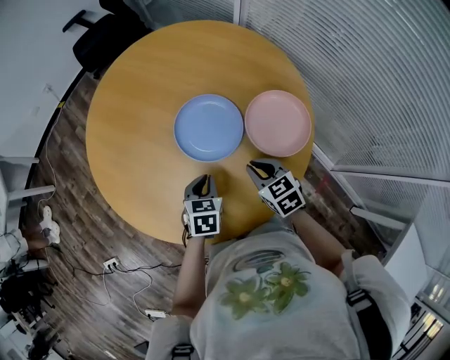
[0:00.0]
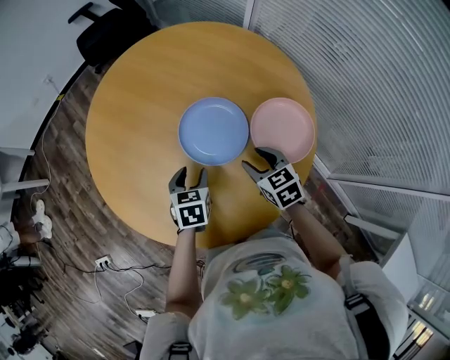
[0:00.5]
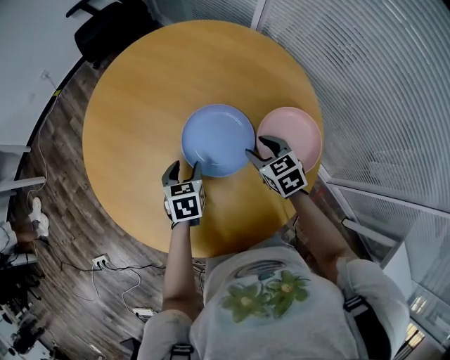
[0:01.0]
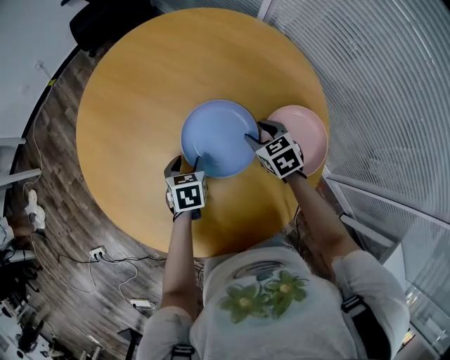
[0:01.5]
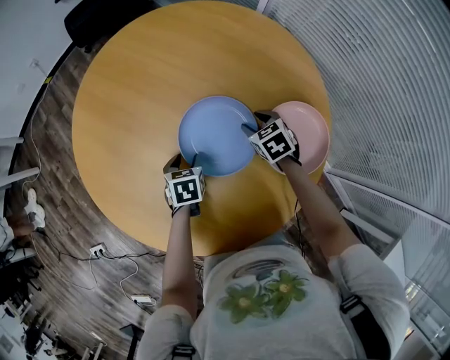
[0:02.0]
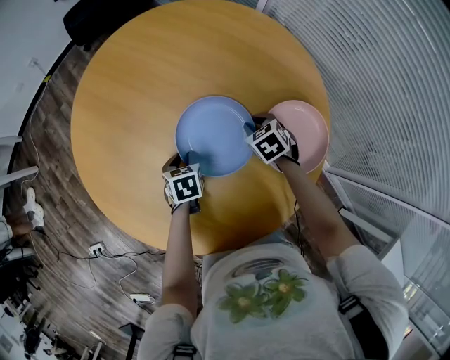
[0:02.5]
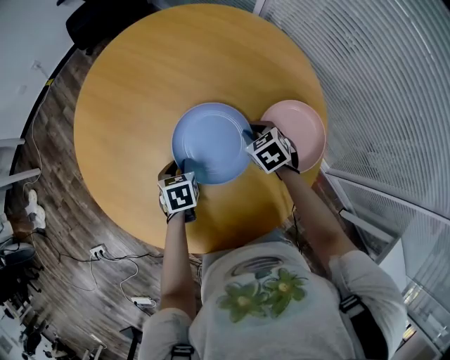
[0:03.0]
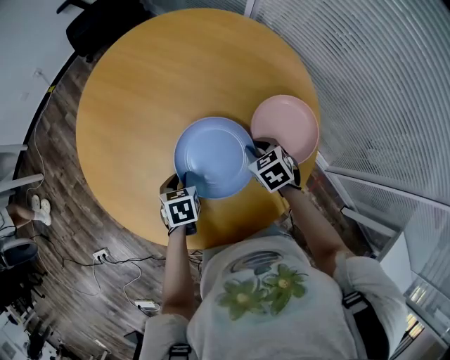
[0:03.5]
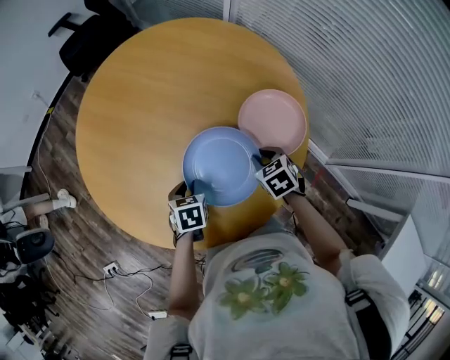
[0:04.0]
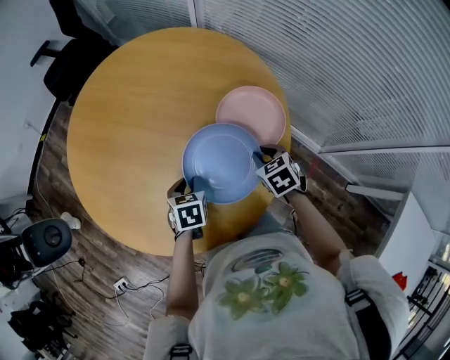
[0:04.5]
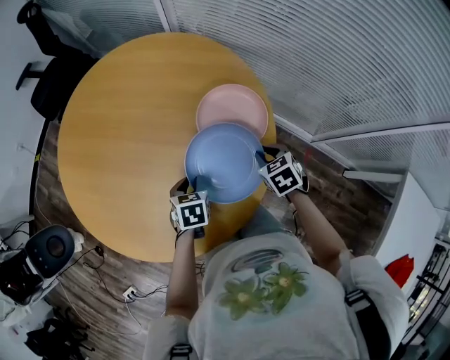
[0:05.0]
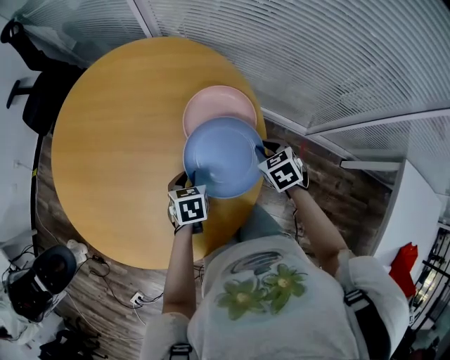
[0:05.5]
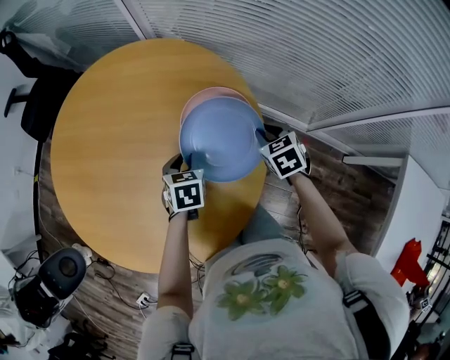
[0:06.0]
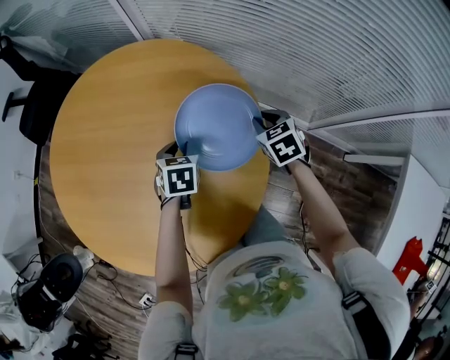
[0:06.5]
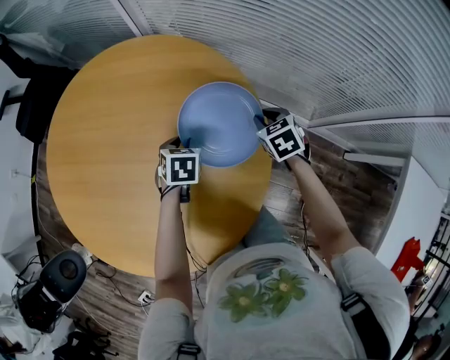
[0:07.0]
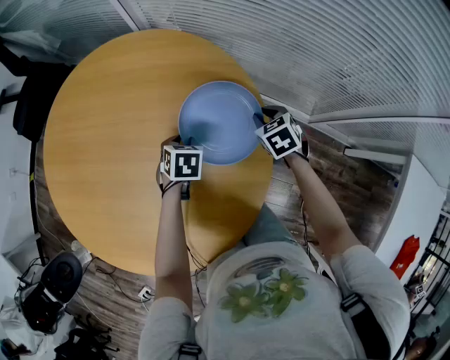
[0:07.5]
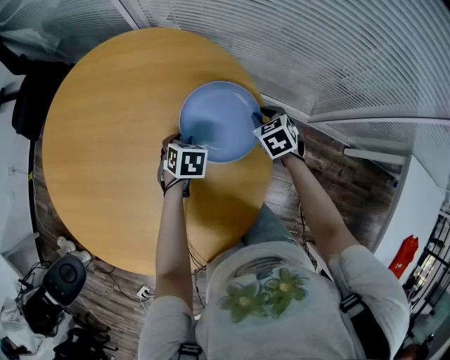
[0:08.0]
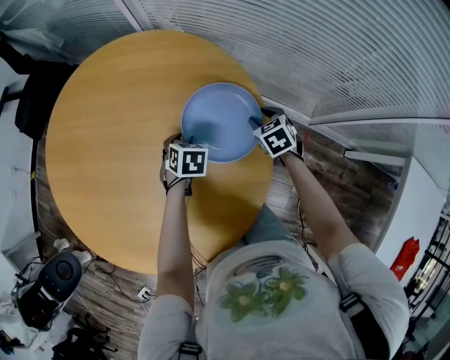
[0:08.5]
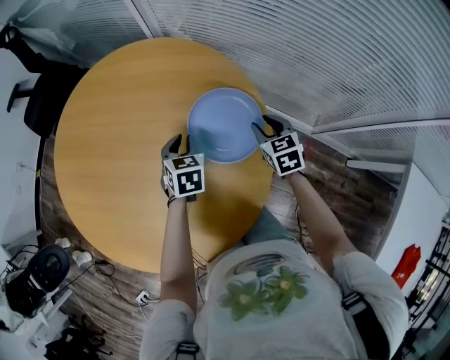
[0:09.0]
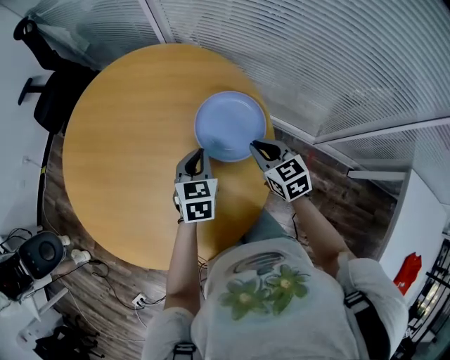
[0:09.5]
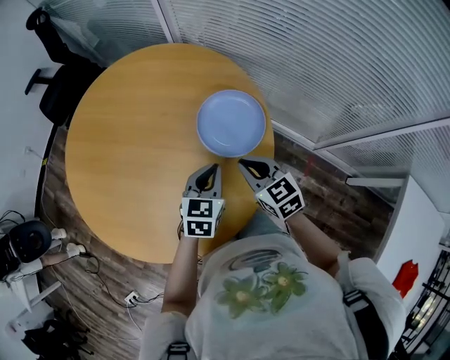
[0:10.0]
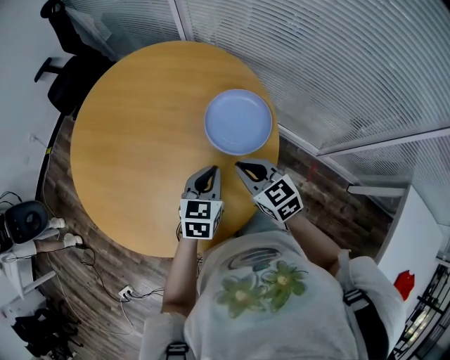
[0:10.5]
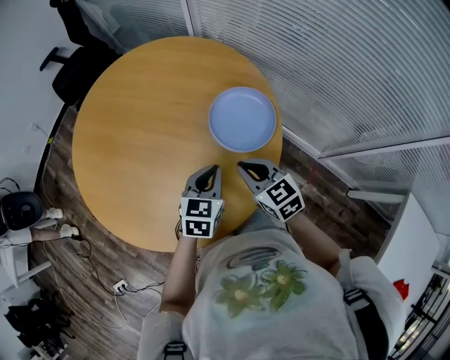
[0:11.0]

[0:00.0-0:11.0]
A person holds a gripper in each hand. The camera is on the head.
0:00.0 to 0:02.0: The grippers both shift forward and downward by approximately 25 cm. The right gripper opens. The left gripper opens its fingers.
0:02.0 to 0:03.5: Both grippers move backward and upward, some 10 cm. The left gripper closes its fingers; the right gripper closes its fingers.
0:03.5 to 0:05.5: The left gripper changes place by some 25 cm, and changes its angle by roughly 30 degrees, while the right gripper moves roughly 25 cm, and rotates some 30 degrees.
0:05.5 to 0:07.5: The two grippers go approximately 15 cm forward.
0:07.5 to 0:09.0: Both grippers travel together upward, roughly 5 cm.
0:09.0 to 0:11.0: The left gripper heads backward and upward, covering some 25 cm, while the right gripper is displaced backward, to the left and upward by roughly 25 cm, swivels roughly 30 degrees, and closes up.

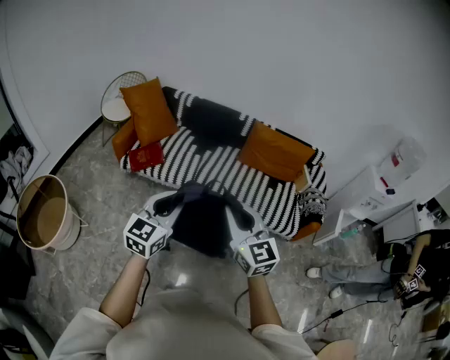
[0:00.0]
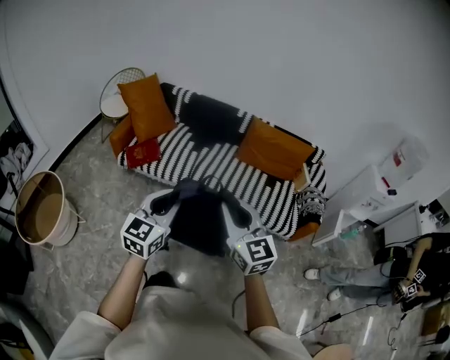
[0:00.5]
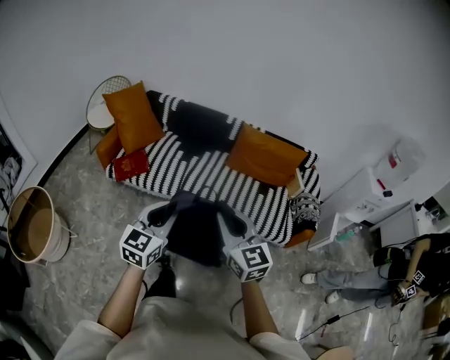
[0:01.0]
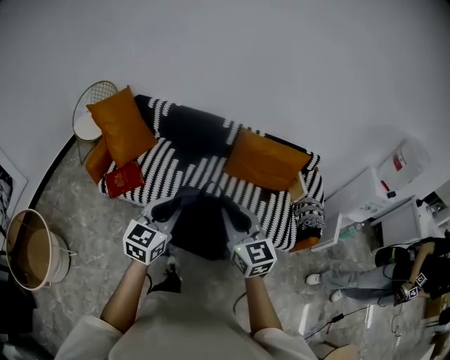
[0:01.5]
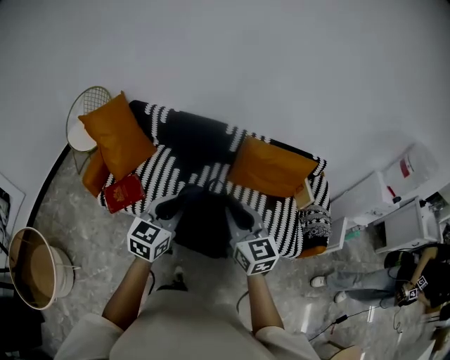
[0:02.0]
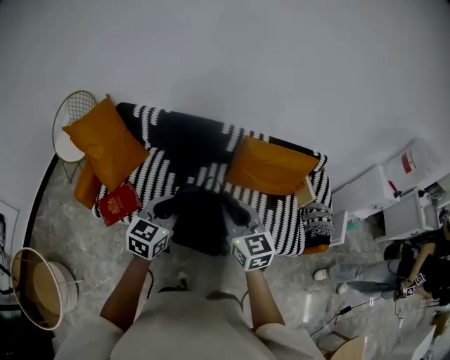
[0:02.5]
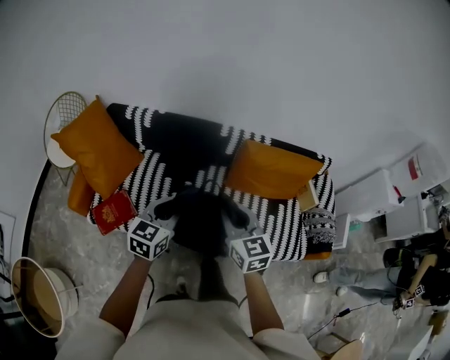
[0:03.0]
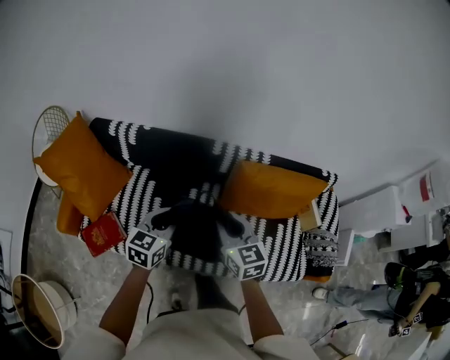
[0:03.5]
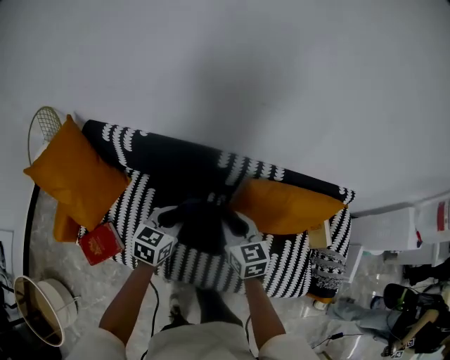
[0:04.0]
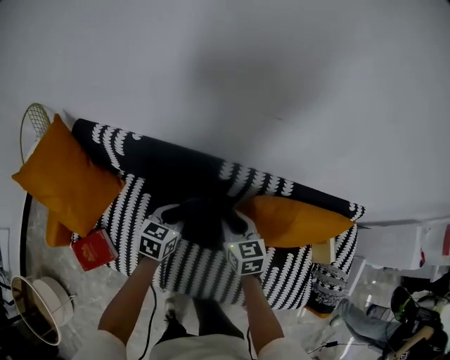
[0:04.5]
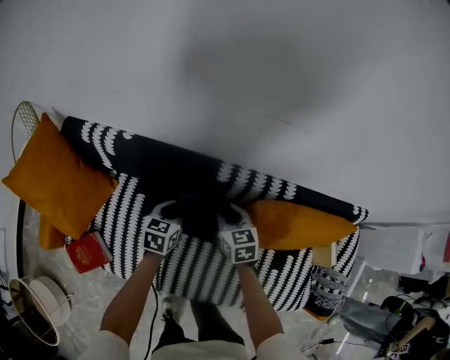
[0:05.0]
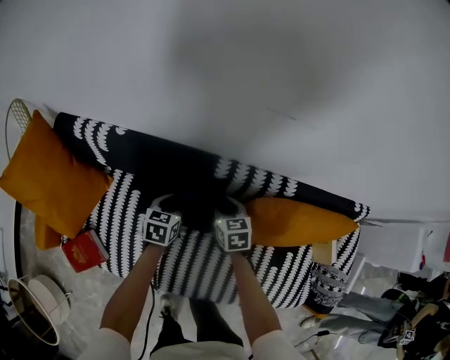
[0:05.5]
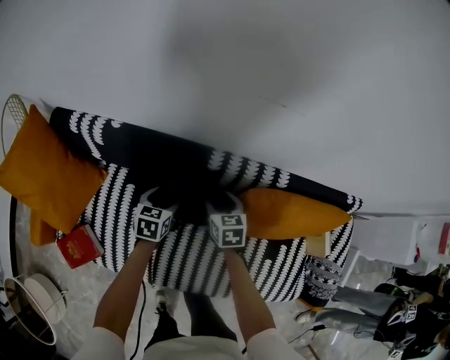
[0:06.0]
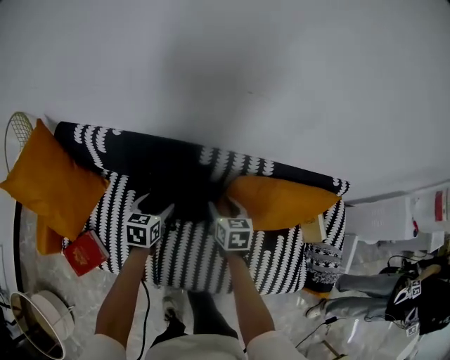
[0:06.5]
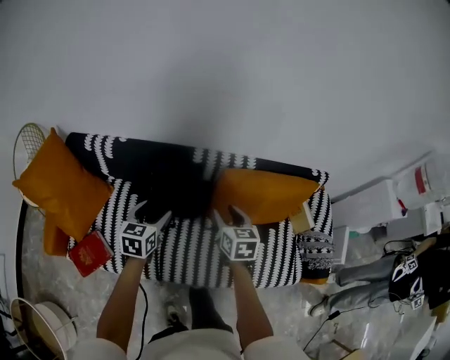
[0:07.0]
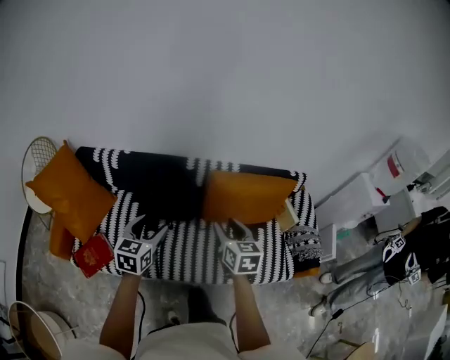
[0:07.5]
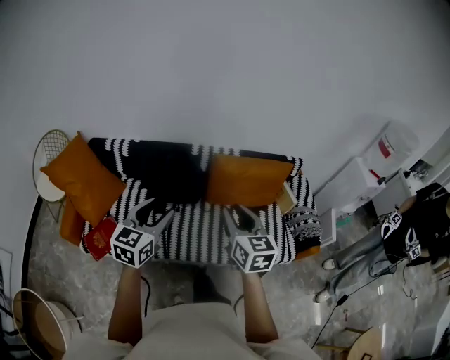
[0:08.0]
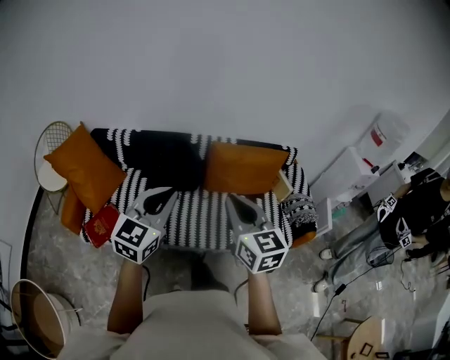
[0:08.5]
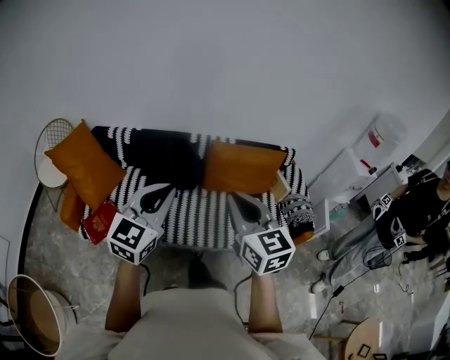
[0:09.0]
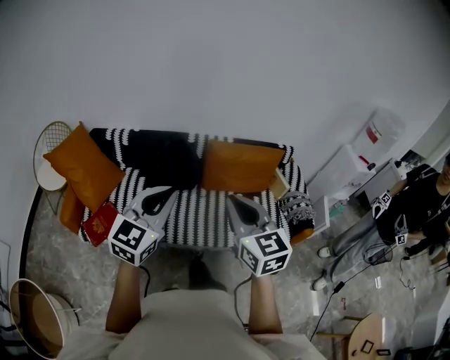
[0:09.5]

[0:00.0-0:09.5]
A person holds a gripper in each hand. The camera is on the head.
0:00.0 to 0:02.0: The grippers both shift forward by some 35 cm.
0:02.0 to 0:04.0: The pair of grippers is taken forward, approximately 50 cm. The grippers both shift downward by about 20 cm. The right gripper changes its angle by about 20 degrees. Meanwhile the left gripper changes its angle by approximately 20 degrees.
0:04.0 to 0:05.5: The two grippers go approximately 30 cm downward and forward.
0:05.5 to 0:07.5: Both grippers travel together backward and upward, some 50 cm. The right gripper rotates roughly 30 degrees, and opens up. The left gripper swivels some 30 degrees, and opens.
0:07.5 to 0:09.5: The two grippers go about 35 cm backward and upward. The left gripper swivels about 30 degrees, and closes; the right gripper changes its angle by approximately 20 degrees, and closes up.

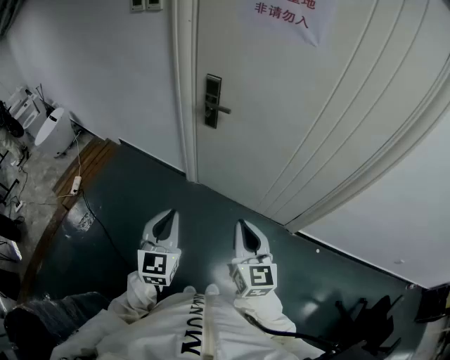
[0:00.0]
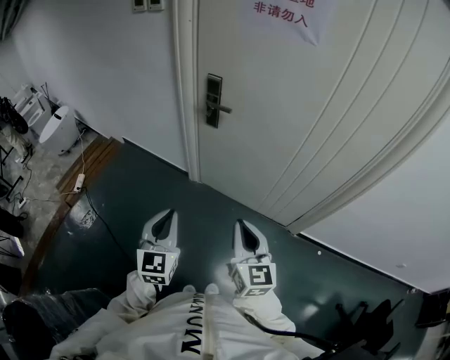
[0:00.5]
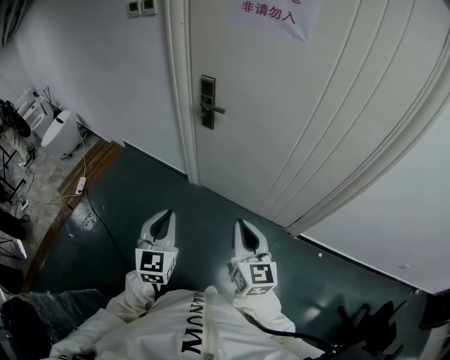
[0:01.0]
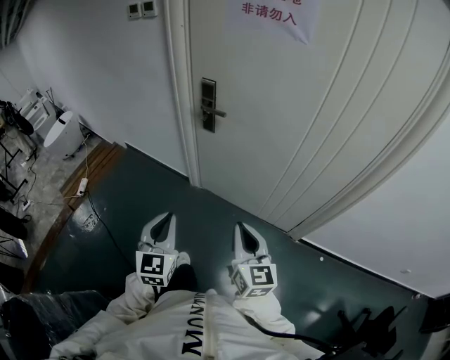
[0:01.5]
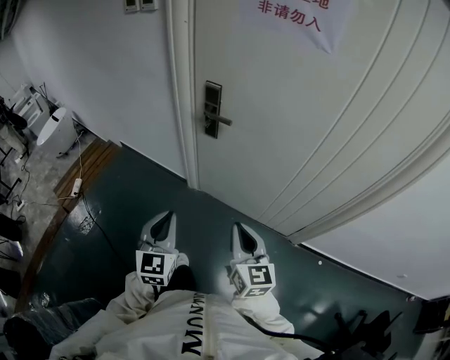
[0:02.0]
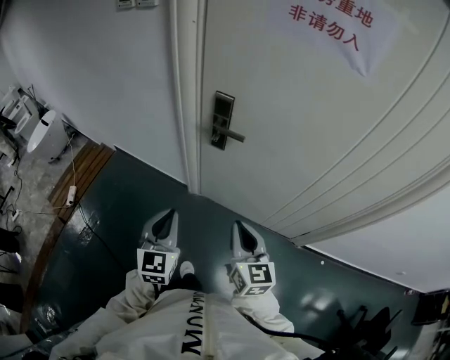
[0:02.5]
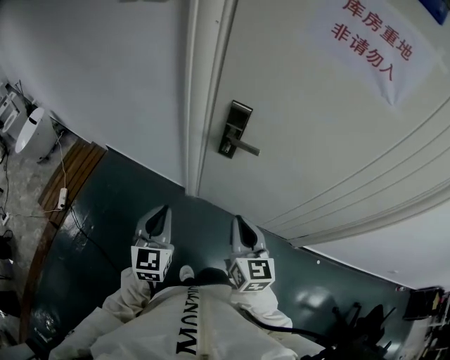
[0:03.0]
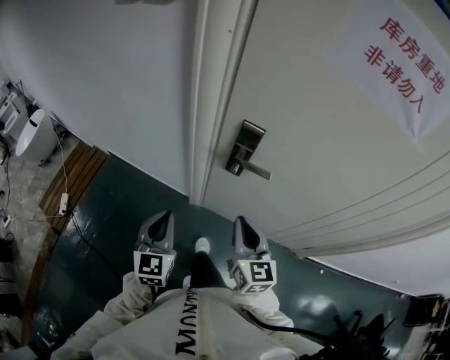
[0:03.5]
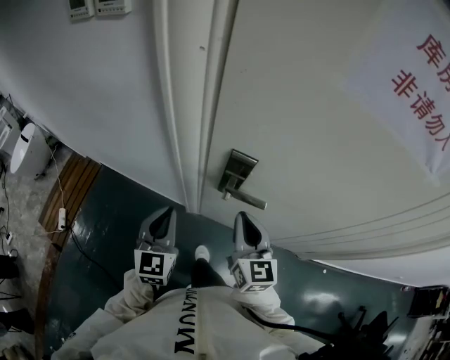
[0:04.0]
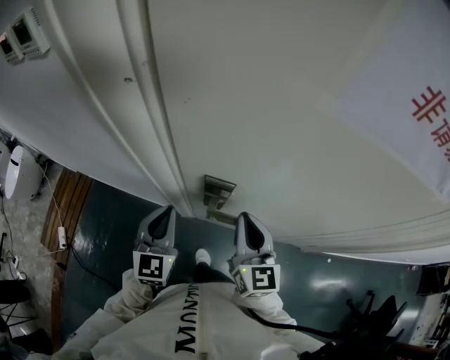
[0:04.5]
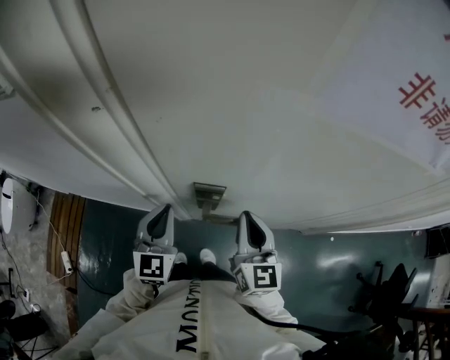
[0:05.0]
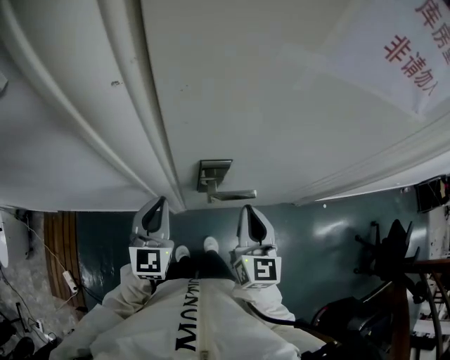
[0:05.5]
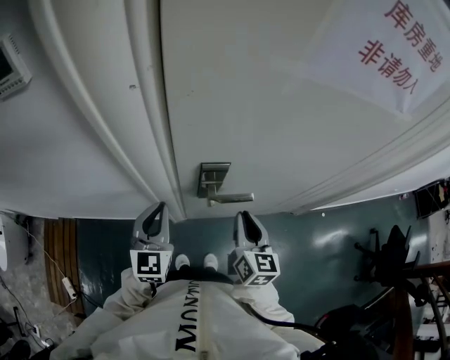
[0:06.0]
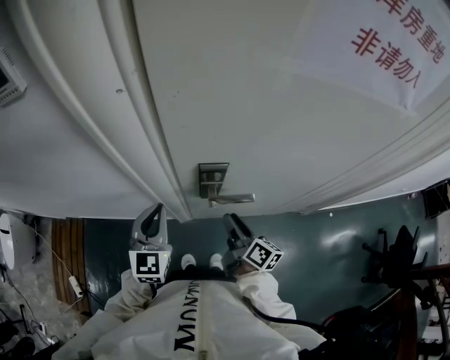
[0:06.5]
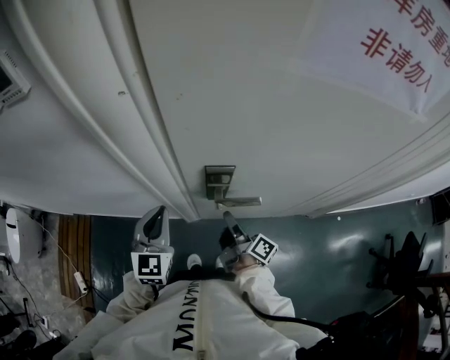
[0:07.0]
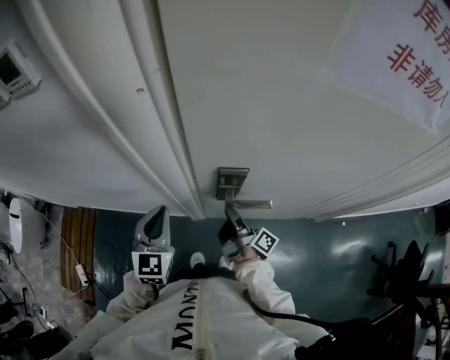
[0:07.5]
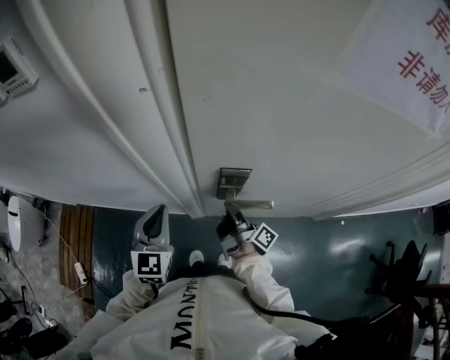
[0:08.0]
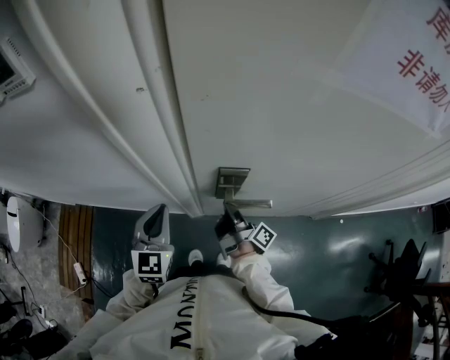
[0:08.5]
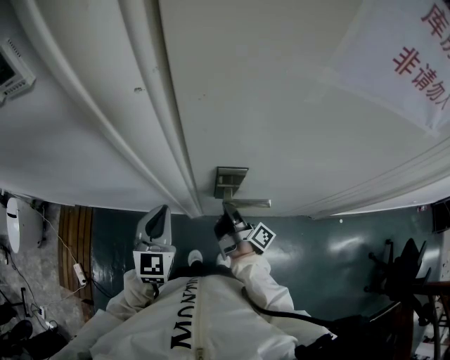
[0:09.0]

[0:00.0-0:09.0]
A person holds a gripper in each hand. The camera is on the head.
0:00.0 to 0:02.0: The grippers both shift forward by some 10 cm.
0:02.0 to 0:04.5: The pair of grippers is taken forward, roughly 40 cm.
0:04.5 to 0:07.0: The right gripper travels downward by about 15 cm, rotates around the line of its fingers by about 70 degrees, clockwise from behind, and opens its fingers.
0:07.0 to 0:09.0: The right gripper closes its fingers.
